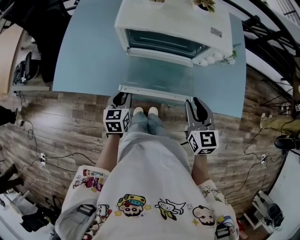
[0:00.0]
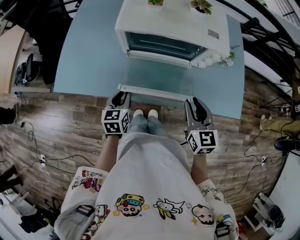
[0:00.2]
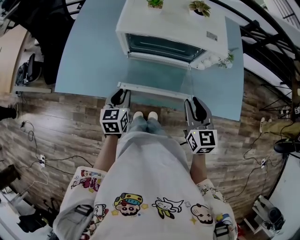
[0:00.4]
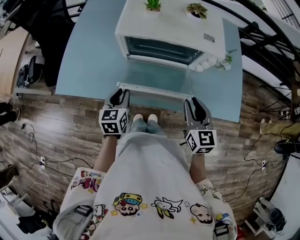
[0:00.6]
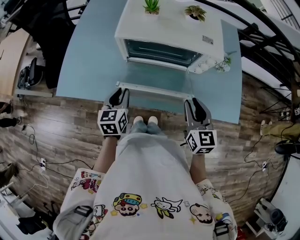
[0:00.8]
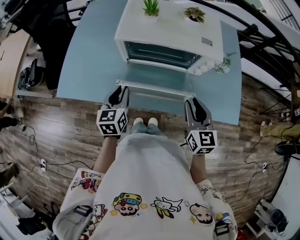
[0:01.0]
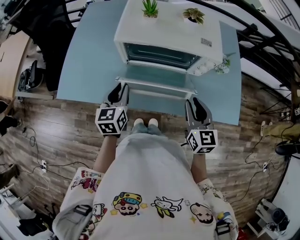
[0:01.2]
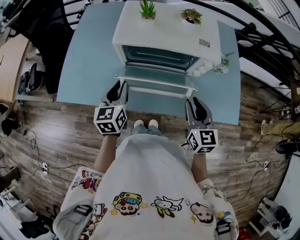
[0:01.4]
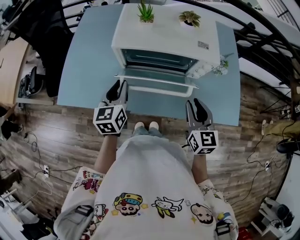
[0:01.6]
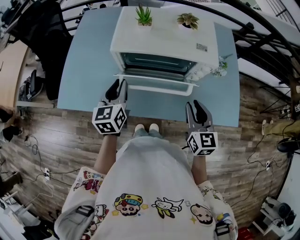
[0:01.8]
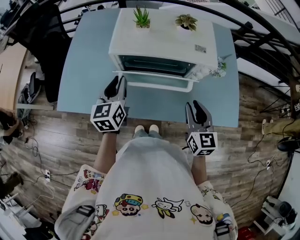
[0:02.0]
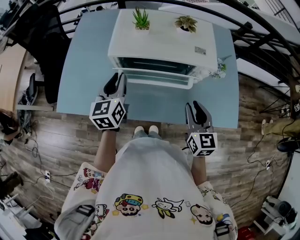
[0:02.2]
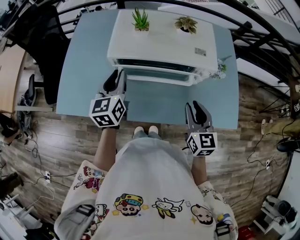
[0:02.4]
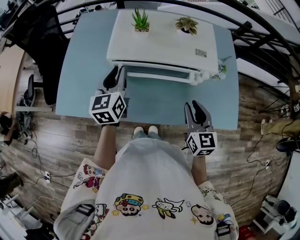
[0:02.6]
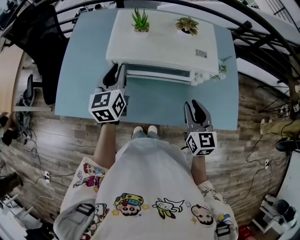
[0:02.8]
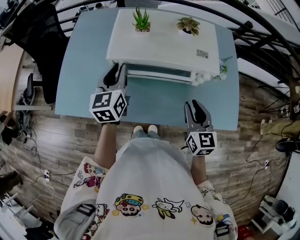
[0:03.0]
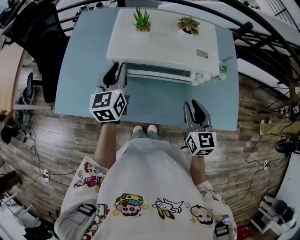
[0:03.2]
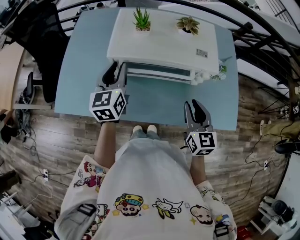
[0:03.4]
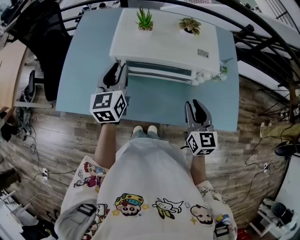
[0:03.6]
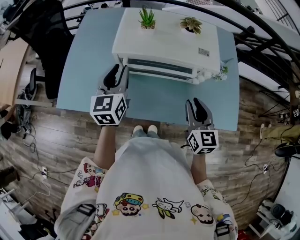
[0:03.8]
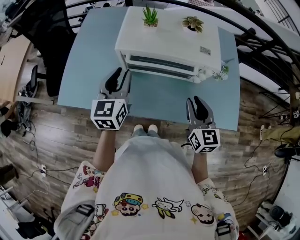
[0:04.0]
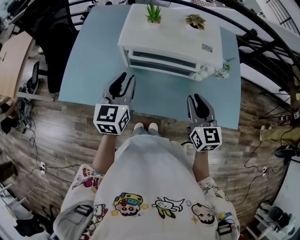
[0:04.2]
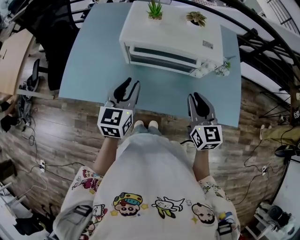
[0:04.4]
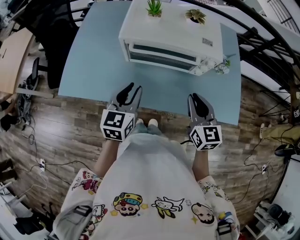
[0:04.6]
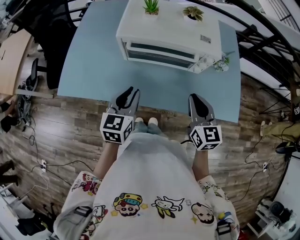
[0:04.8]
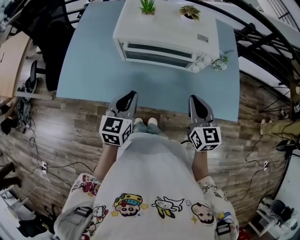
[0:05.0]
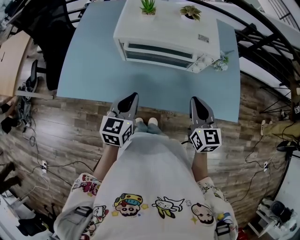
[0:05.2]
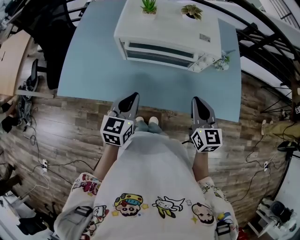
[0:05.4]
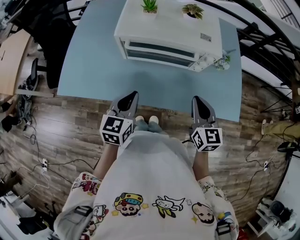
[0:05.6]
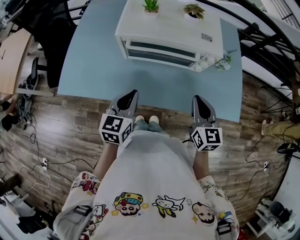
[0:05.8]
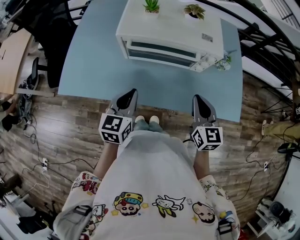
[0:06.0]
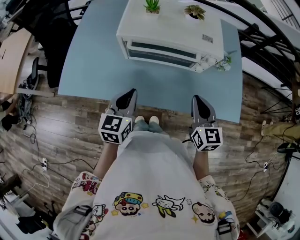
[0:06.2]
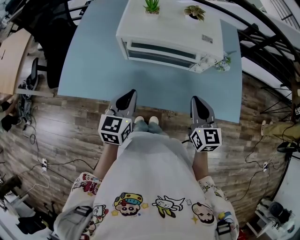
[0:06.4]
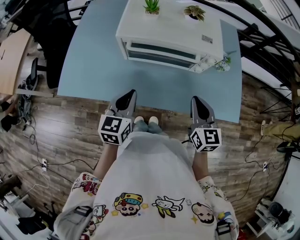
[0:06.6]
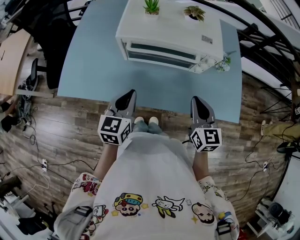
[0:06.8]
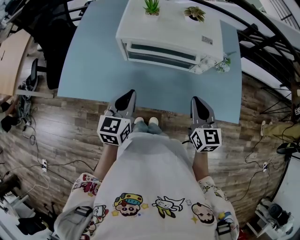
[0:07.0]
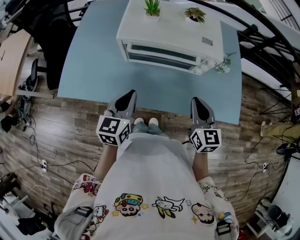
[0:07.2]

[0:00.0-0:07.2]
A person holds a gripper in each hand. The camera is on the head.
0.0 to 1.4 s: The left gripper travels upward and forward by approximately 15 cm.
1.4 to 2.8 s: The left gripper heads forward and upward, covering some 15 cm.
2.8 to 4.4 s: The left gripper heads backward, covering approximately 15 cm.
4.4 to 5.8 s: The left gripper ends up about 5 cm from where it was, and closes its fingers.
5.8 to 7.2 s: The grippers stay close to where they were, moving slightly.

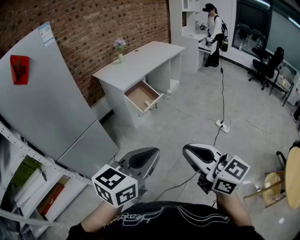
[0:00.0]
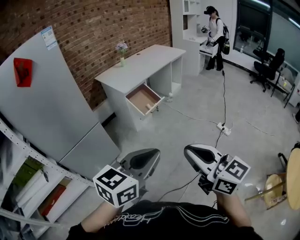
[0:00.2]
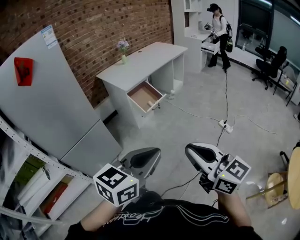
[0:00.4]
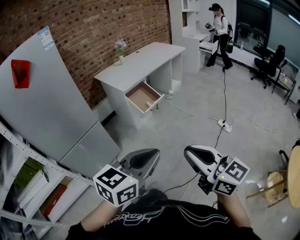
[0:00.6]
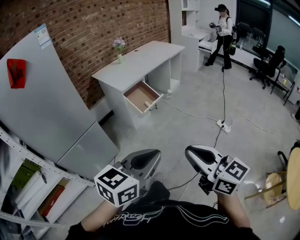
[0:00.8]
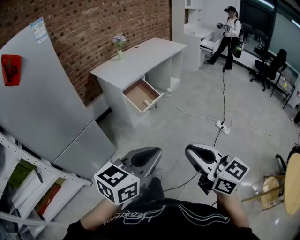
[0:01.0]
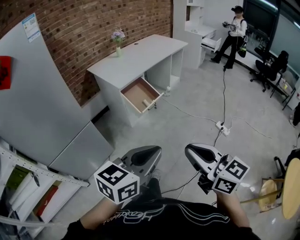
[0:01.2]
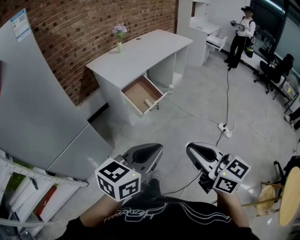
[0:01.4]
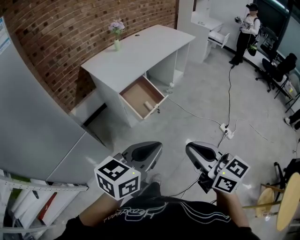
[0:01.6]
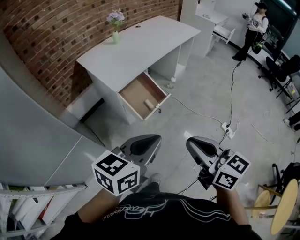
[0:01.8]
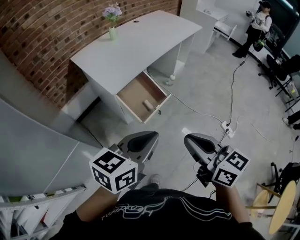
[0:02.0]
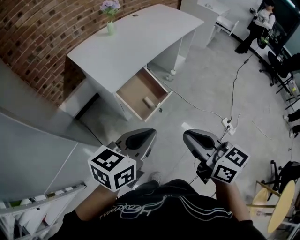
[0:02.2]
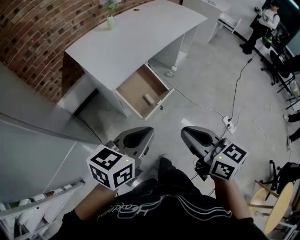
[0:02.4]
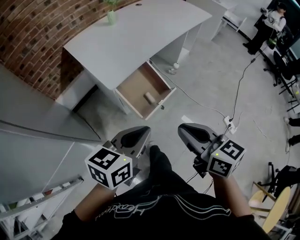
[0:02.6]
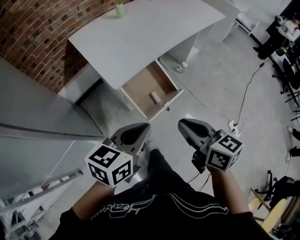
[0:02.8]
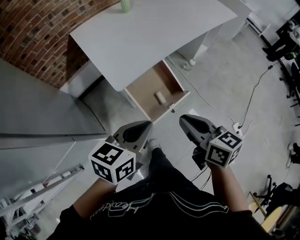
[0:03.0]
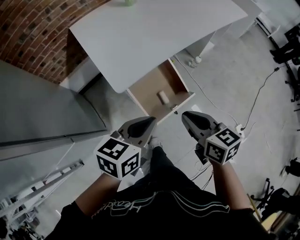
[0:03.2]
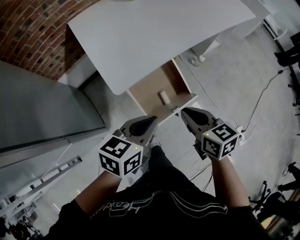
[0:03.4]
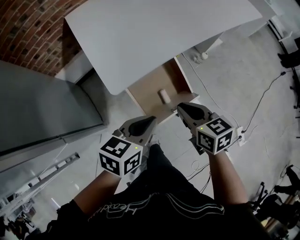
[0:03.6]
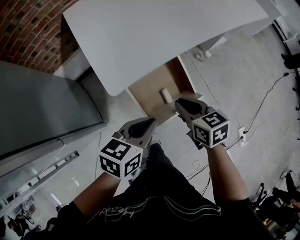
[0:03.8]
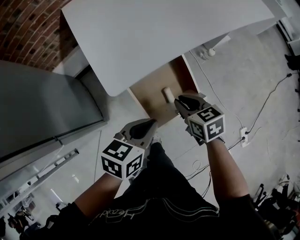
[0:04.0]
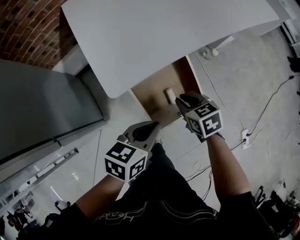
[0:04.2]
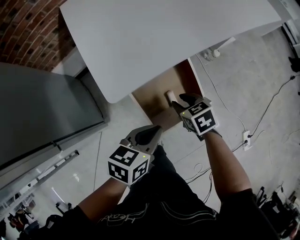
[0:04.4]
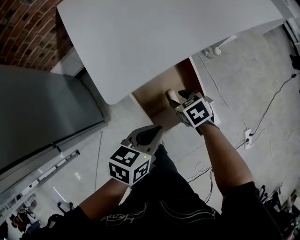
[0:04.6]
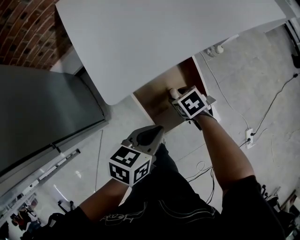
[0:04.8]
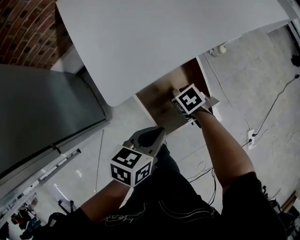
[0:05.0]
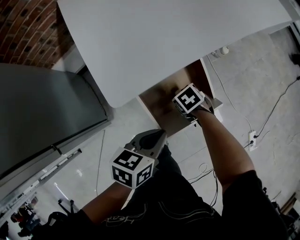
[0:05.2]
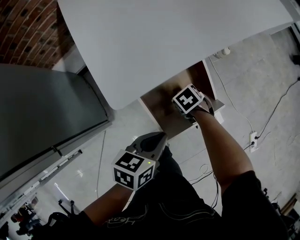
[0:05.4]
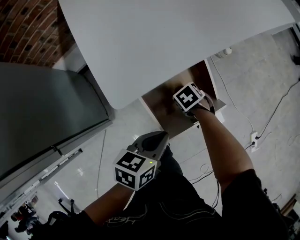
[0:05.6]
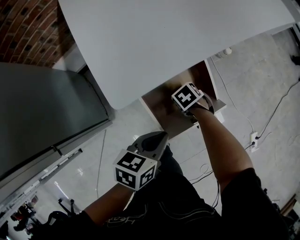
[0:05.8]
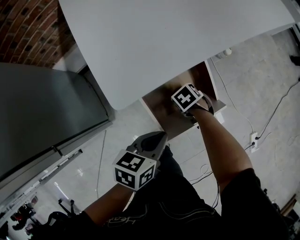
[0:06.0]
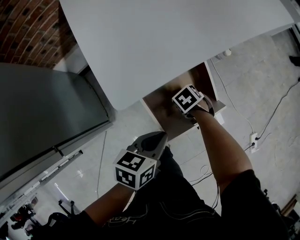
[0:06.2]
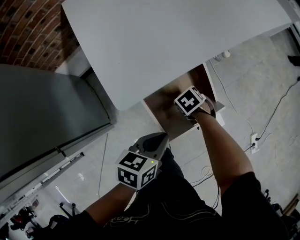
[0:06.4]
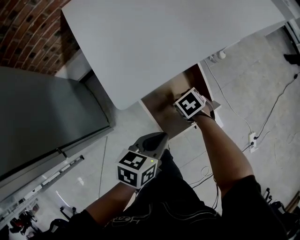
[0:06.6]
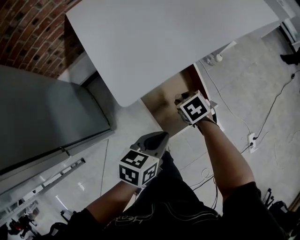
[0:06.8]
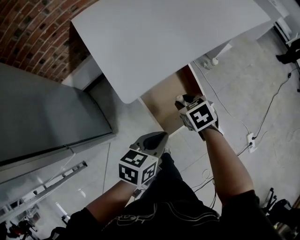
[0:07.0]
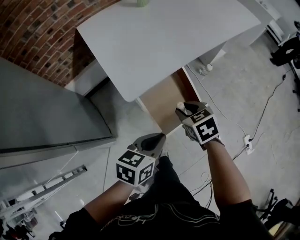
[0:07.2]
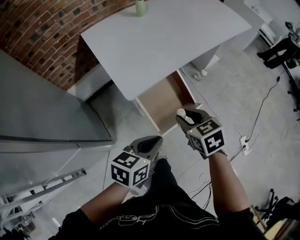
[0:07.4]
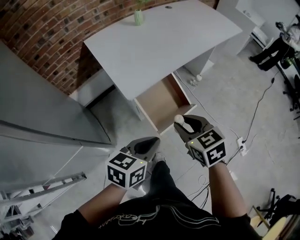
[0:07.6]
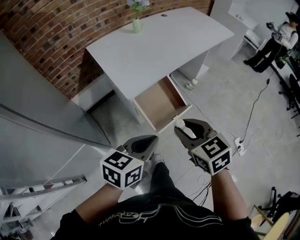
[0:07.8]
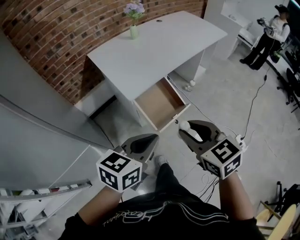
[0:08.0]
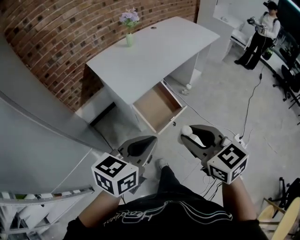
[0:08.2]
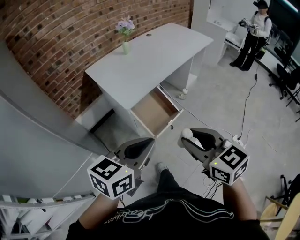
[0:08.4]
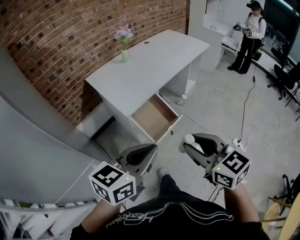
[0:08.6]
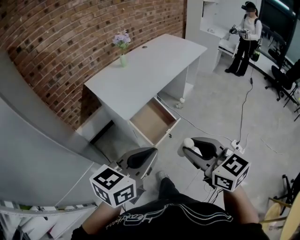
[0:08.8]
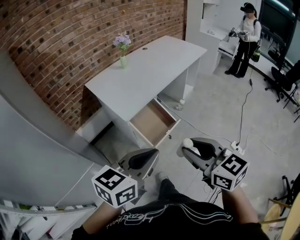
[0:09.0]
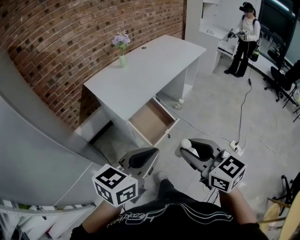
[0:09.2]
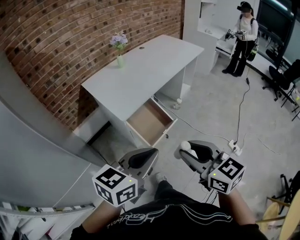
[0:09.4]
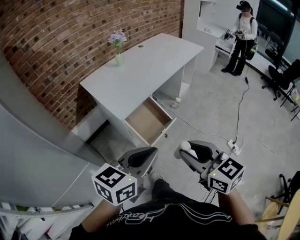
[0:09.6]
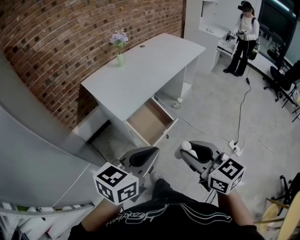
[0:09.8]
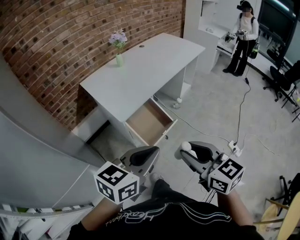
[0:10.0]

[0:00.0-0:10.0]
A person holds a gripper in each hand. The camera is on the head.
0.0 to 1.4 s: Both grippers travel together forward, roughly 20 cm.
1.4 to 2.8 s: The two grippers travel together, forward, roughly 50 cm. The right gripper changes its angle by about 20 degrees.
2.8 to 4.2 s: Both grippers move downward and forward, some 35 cm. The right gripper points its fingers some 30 degrees further downward.
4.2 to 5.8 s: The left gripper heads downward, covering about 10 cm. The right gripper travels downward by some 20 cm, tilts its fingers roughly 30 degrees downward, and opens up.
5.8 to 7.2 s: The left gripper heads upward, covering roughly 15 cm. The right gripper shifts approximately 30 cm upward, and changes its angle by some 30 degrees.
7.2 to 8.6 s: Both grippers move upward and backward, some 40 cm. The right gripper points its fingers about 30 degrees further upward. The left gripper rotates some 30 degrees.
8.6 to 10.0 s: The grippers make only small movements.

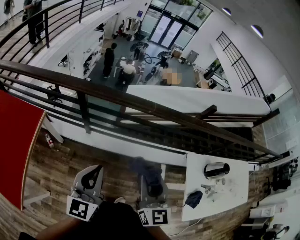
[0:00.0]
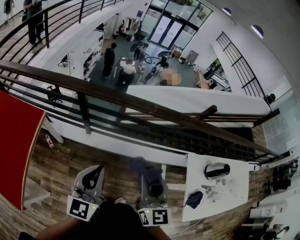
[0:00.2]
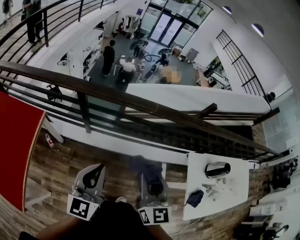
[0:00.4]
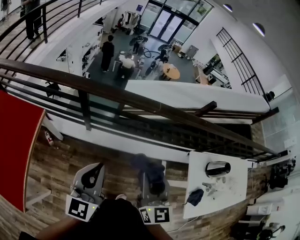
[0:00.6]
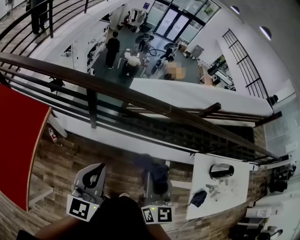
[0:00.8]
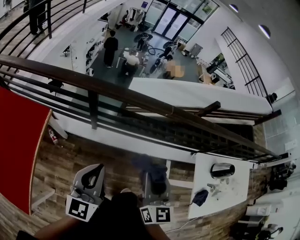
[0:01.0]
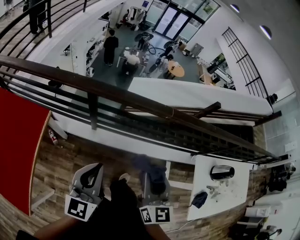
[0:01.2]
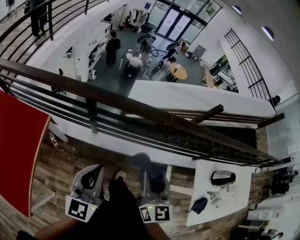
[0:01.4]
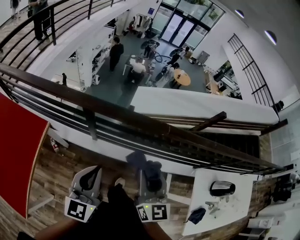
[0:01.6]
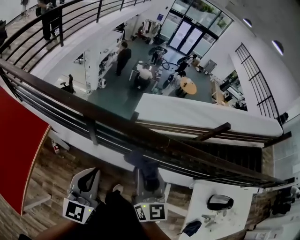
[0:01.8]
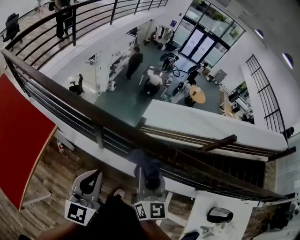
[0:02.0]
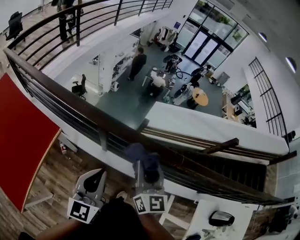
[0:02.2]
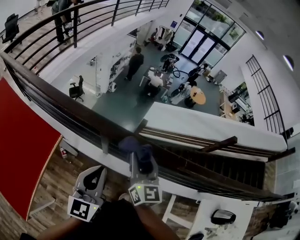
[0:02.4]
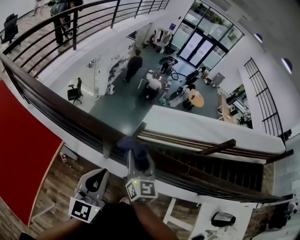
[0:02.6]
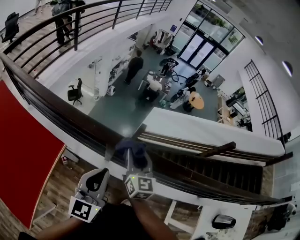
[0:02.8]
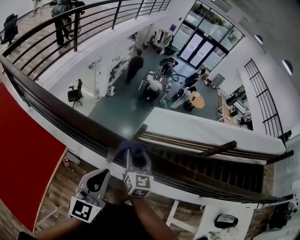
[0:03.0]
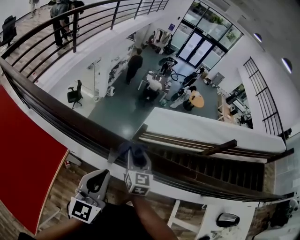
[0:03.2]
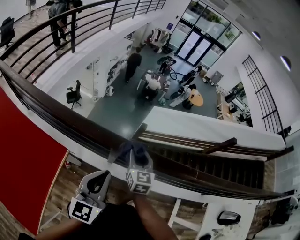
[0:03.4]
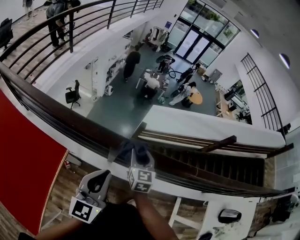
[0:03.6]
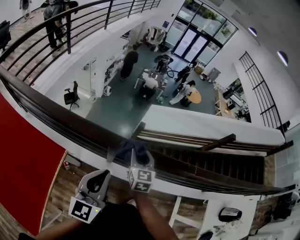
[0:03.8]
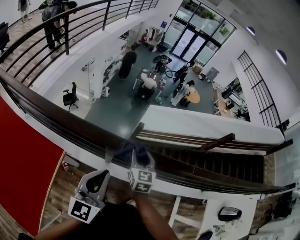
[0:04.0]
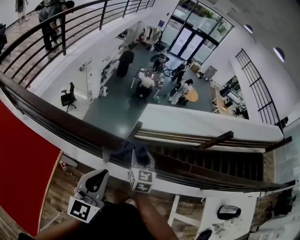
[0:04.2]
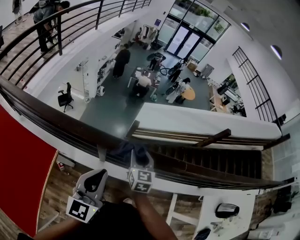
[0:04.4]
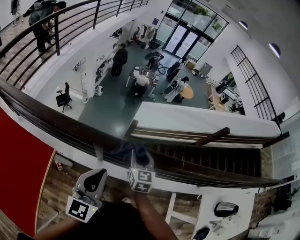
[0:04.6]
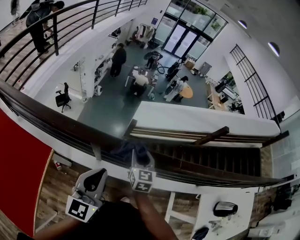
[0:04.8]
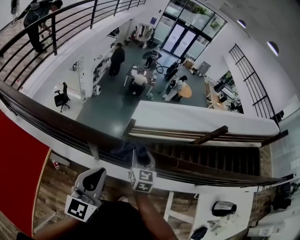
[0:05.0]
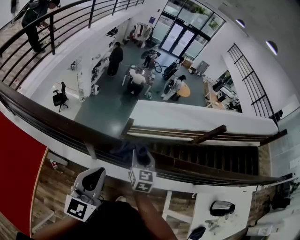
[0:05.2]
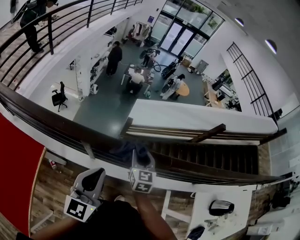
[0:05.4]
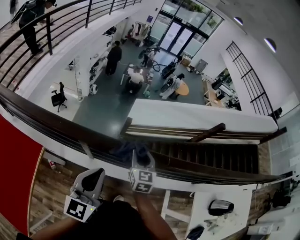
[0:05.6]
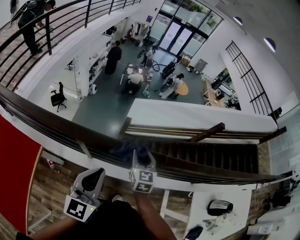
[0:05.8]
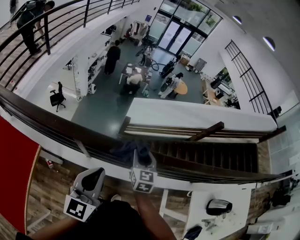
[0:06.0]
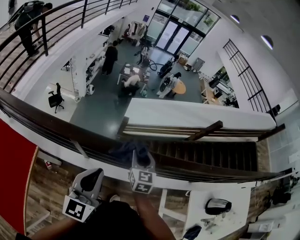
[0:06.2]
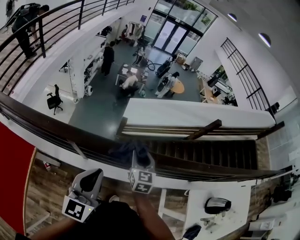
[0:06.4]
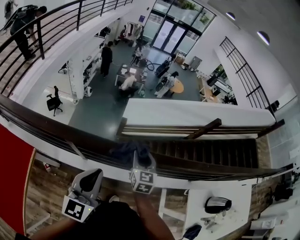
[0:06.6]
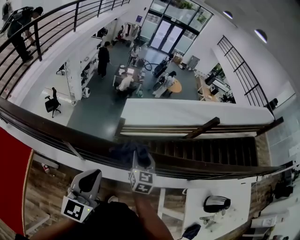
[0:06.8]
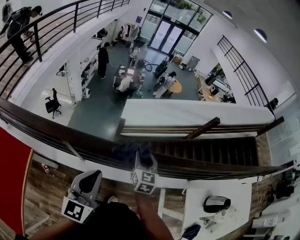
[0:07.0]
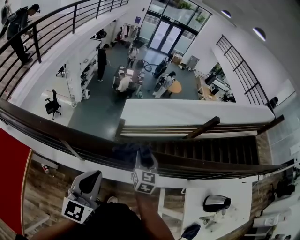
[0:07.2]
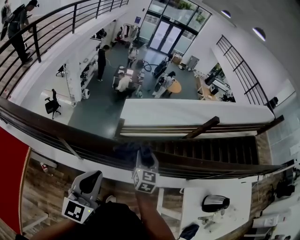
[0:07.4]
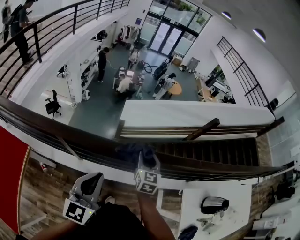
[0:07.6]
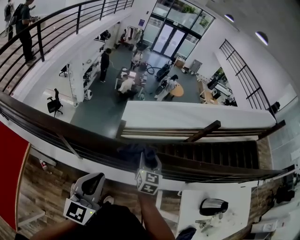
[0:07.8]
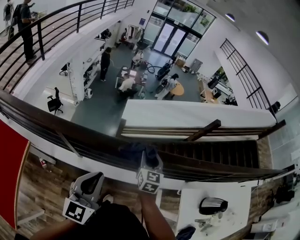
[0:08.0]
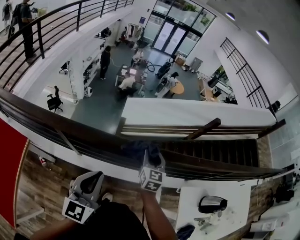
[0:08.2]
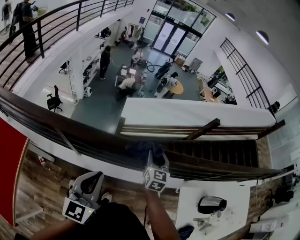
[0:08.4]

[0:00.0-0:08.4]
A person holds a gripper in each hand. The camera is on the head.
0.0 to 1.4 s: The left gripper moves to the left, about 5 cm; the right gripper heads forward, covering approximately 5 cm.
1.4 to 2.8 s: The left gripper heads forward and to the left, covering about 15 cm. The right gripper heads forward and to the left, covering some 30 cm.
2.8 to 4.2 s: The right gripper is displaced downward by roughly 5 cm.
4.2 to 5.6 s: The two grippers go roughly 10 cm to the right.
5.6 to 7.0 s: The left gripper moves to the right, roughly 5 cm. Meanwhile the right gripper moves to the right, approximately 10 cm.
7.0 to 8.4 s: The right gripper heads to the right, covering about 10 cm. Meanwhile the left gripper travels to the right by about 5 cm.
